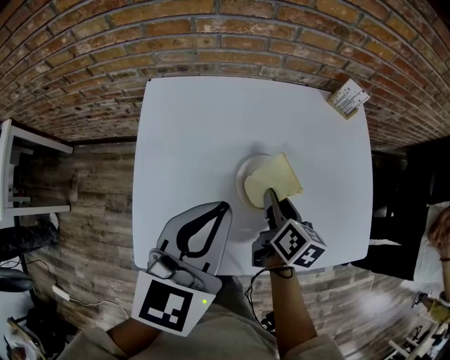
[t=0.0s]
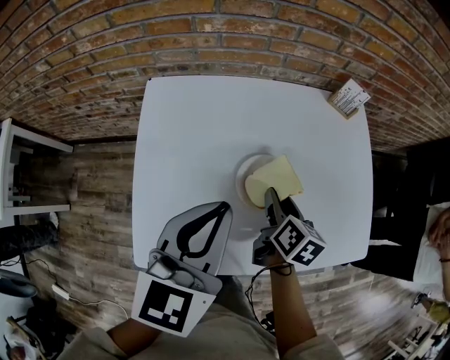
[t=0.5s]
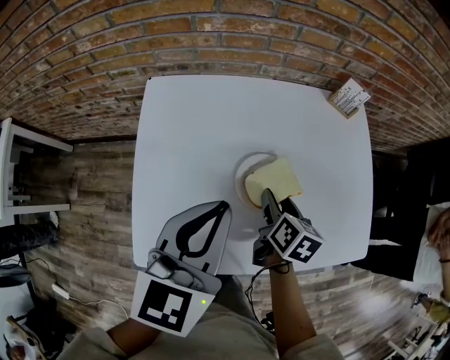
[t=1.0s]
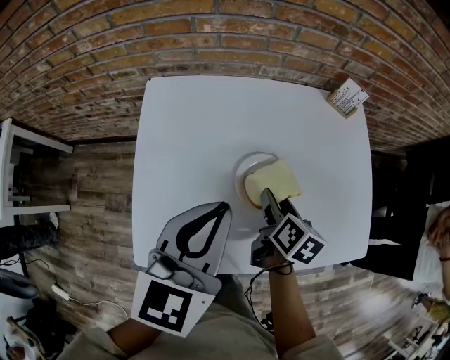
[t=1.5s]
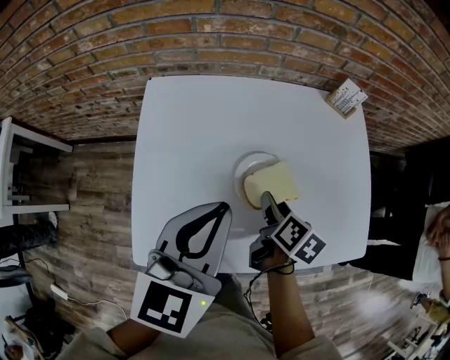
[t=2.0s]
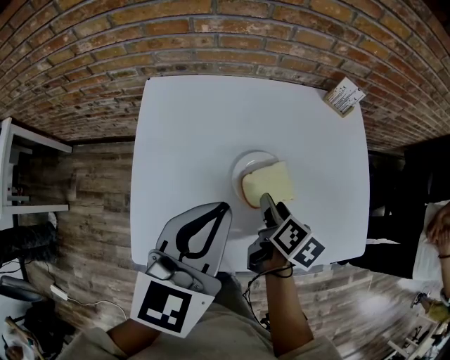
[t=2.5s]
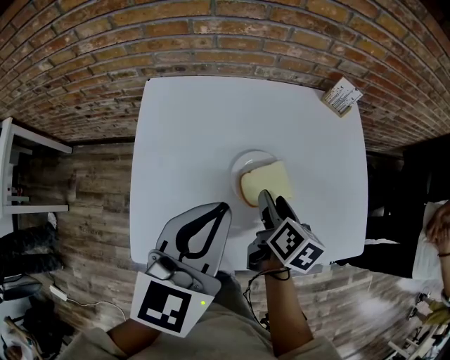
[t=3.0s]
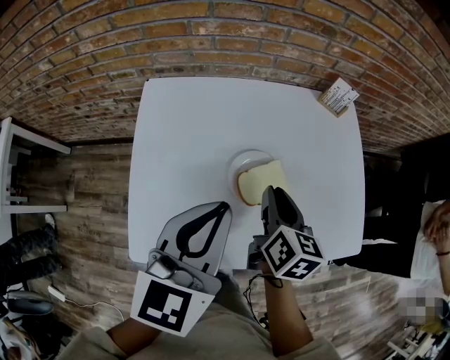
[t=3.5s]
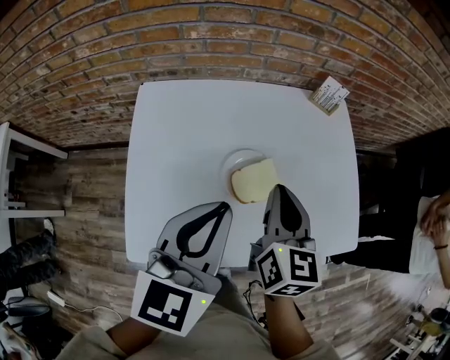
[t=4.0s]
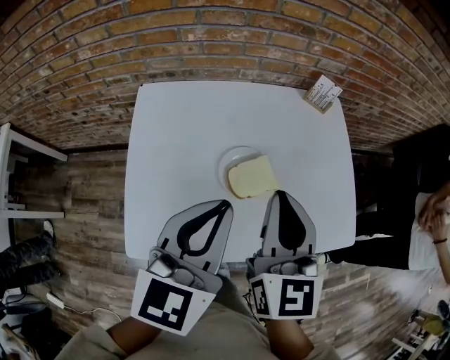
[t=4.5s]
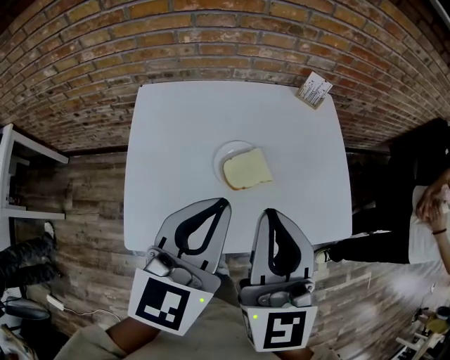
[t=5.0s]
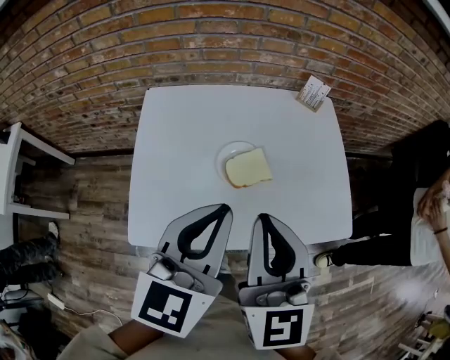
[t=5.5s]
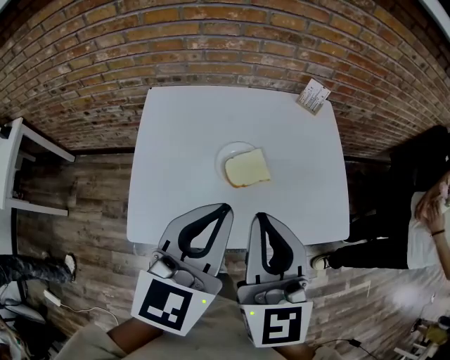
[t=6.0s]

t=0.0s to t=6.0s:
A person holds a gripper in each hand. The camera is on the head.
t=0.0s to t=2.0s: The right gripper opens.
t=2.0s to t=4.0s: The right gripper travels upward by approximately 15 cm, turns by roughly 40 degrees, and closes up.
t=4.0s to t=6.0s: The left gripper shifts approximately 10 cm backward. Meanwhile the right gripper moves backward and upward, some 20 cm, and turns by roughly 20 degrees.

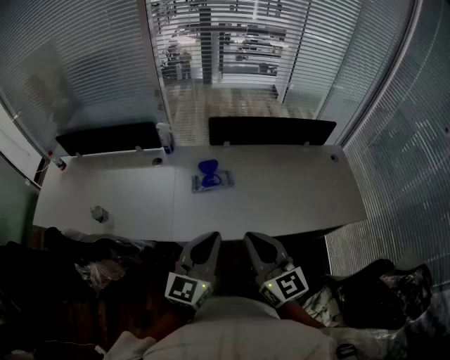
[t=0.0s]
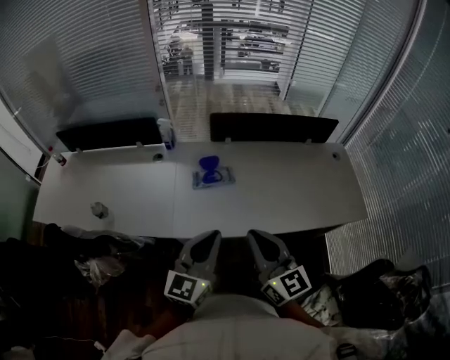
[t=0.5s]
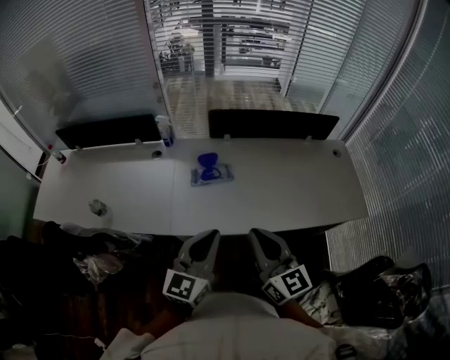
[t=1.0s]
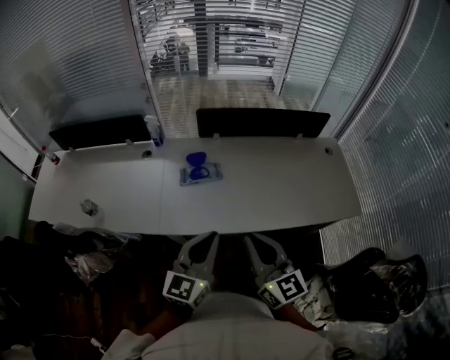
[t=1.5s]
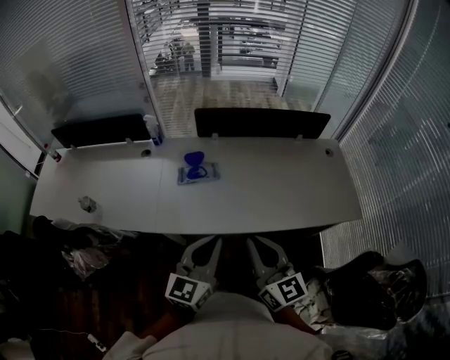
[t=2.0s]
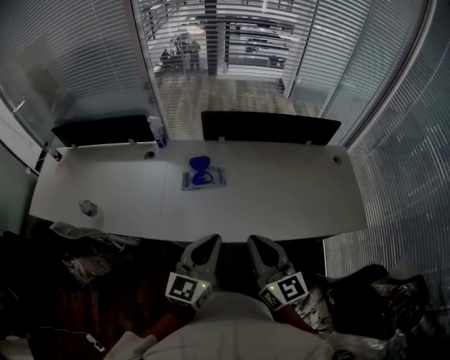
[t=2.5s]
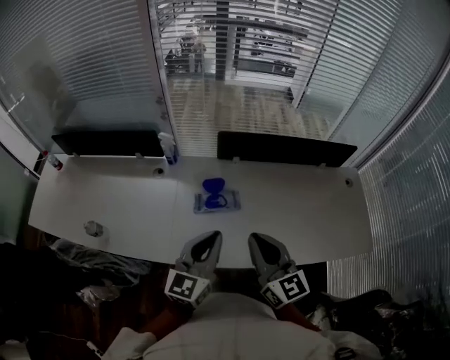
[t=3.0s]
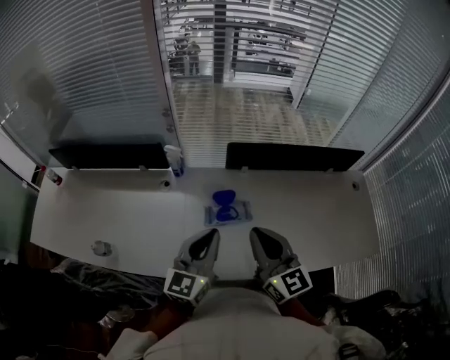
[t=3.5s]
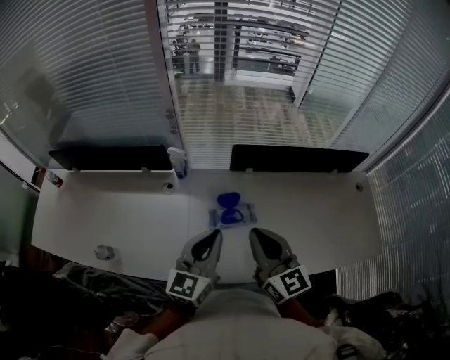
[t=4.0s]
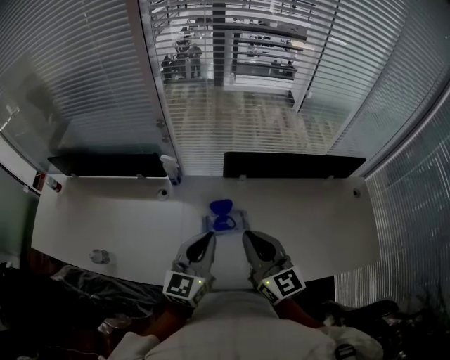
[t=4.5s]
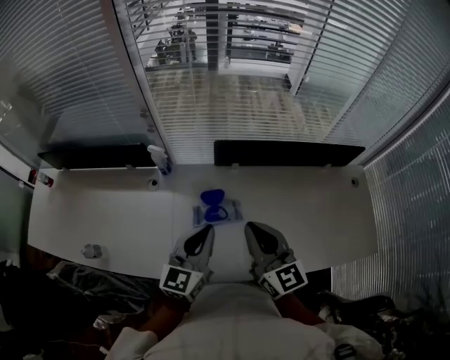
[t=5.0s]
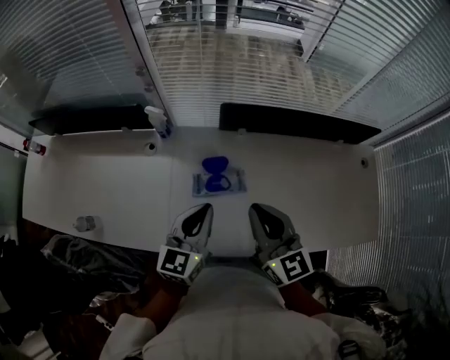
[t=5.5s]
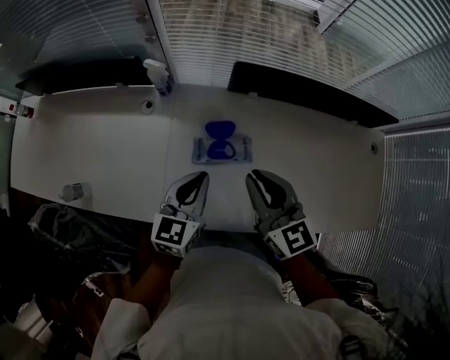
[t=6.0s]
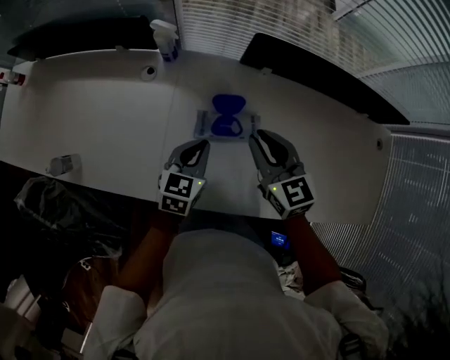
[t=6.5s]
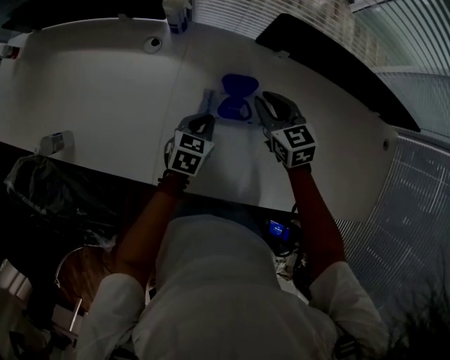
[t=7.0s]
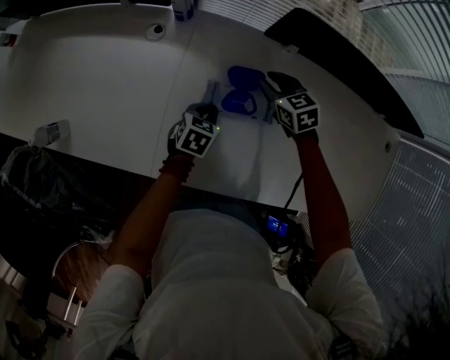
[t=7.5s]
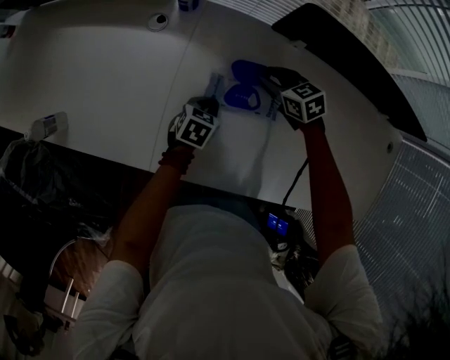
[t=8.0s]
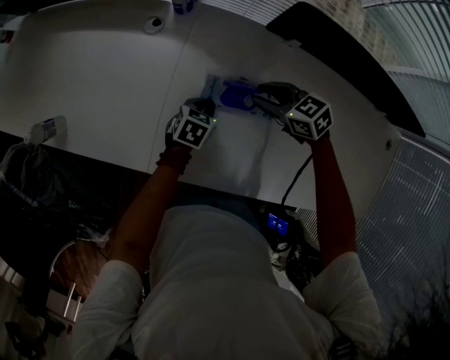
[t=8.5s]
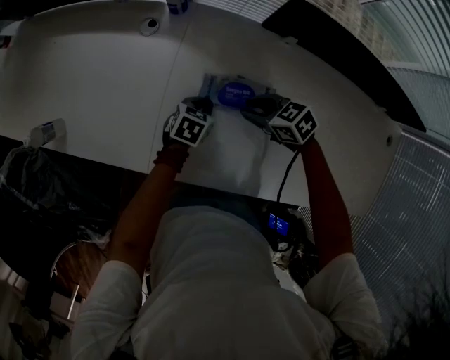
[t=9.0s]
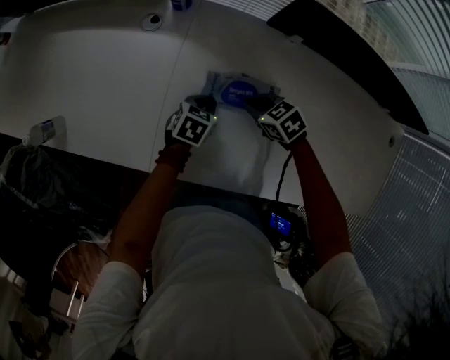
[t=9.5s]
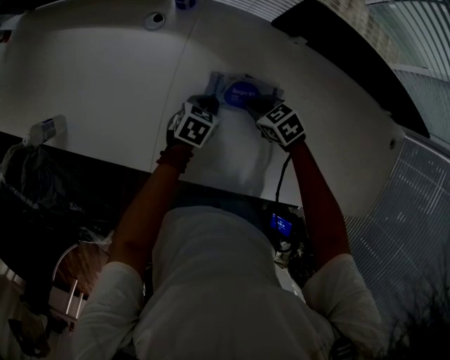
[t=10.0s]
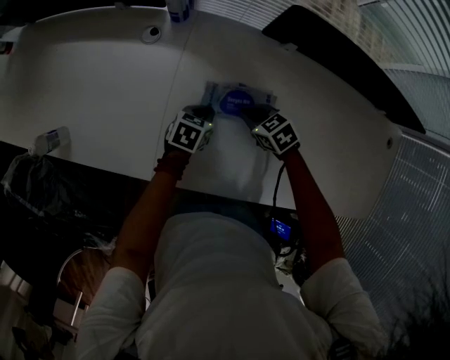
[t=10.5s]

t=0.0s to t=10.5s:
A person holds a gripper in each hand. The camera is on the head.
t=0.0s to t=2.0s: The two grippers go approximately 10 cm to the right.
t=2.0s to t=4.0s: Both grippers travel together forward and to the left, approximately 30 cm.
t=4.0s to t=6.5s: The right gripper goes approximately 20 cm downward and forward, and changes its angle by some 30 degrees. The left gripper travels downward by roughly 25 cm, and rotates about 30 degrees.
t=6.5s to t=8.5s: The two grippers go some 15 cm downward. The left gripper changes its angle by about 20 degrees. The right gripper swivels some 40 degrees.
t=8.5s to t=10.5s: The right gripper is displaced downward by about 10 cm, and closes up.

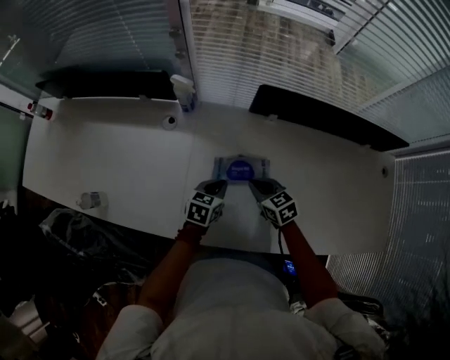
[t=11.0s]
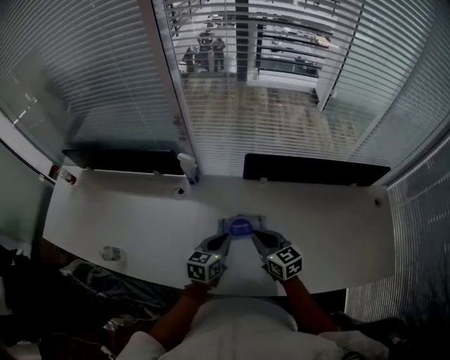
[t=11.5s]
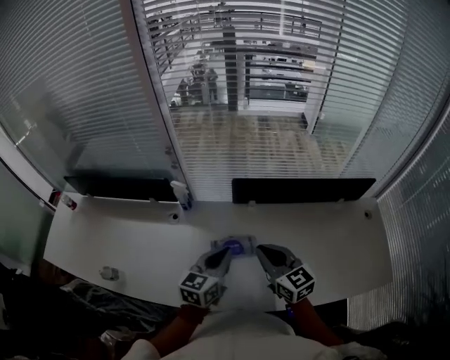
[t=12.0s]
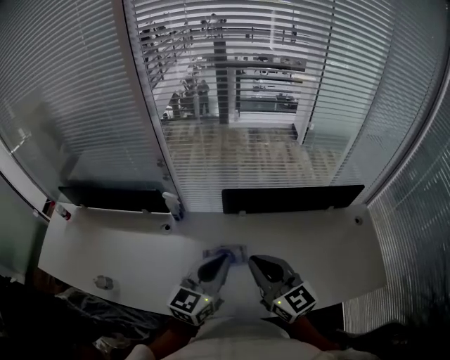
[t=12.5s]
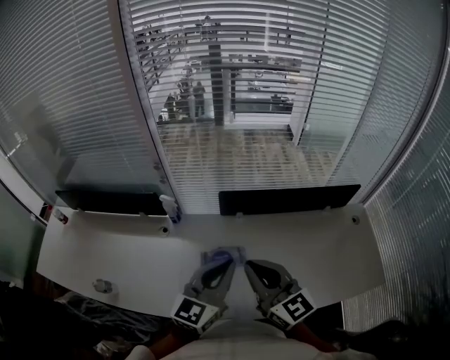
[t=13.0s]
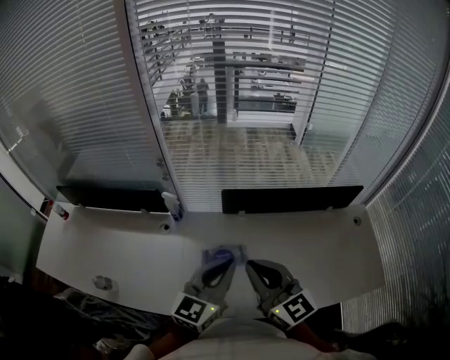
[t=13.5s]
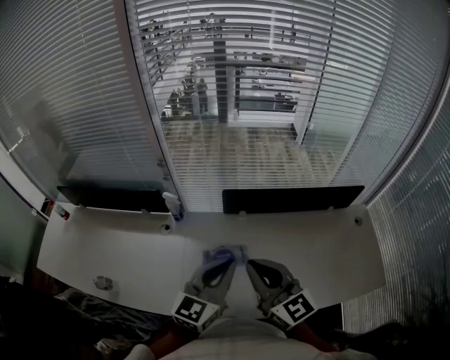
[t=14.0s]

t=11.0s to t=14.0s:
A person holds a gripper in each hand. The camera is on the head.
t=11.0s to t=12.5s: Both grippers move upward, roughly 35 cm. The right gripper points its fingers some 40 degrees further upward; the left gripper points its fingers about 40 degrees further upward.
t=12.5s to t=14.0s: The grippers make only small movements.

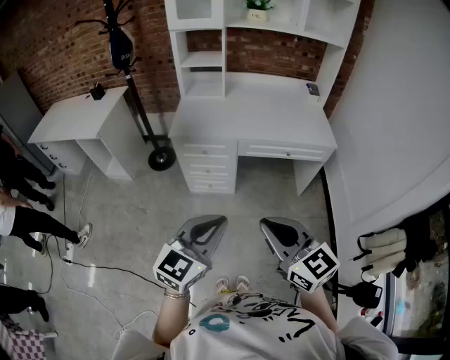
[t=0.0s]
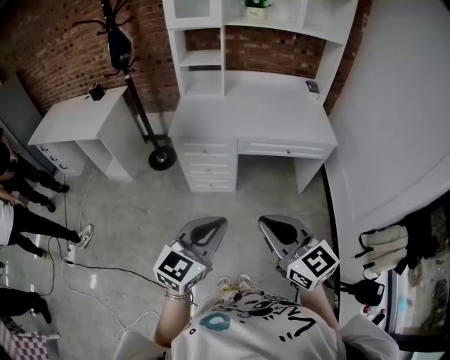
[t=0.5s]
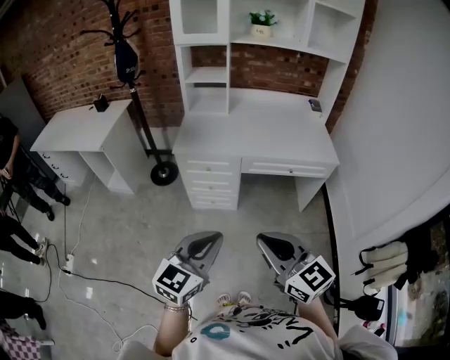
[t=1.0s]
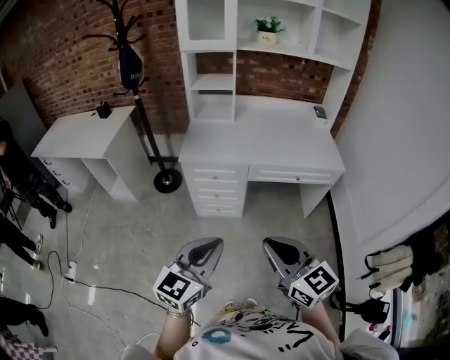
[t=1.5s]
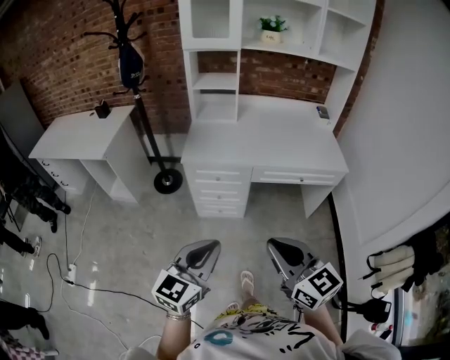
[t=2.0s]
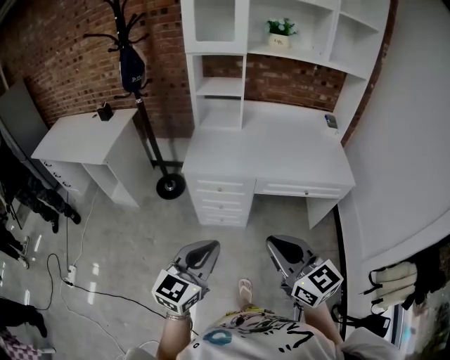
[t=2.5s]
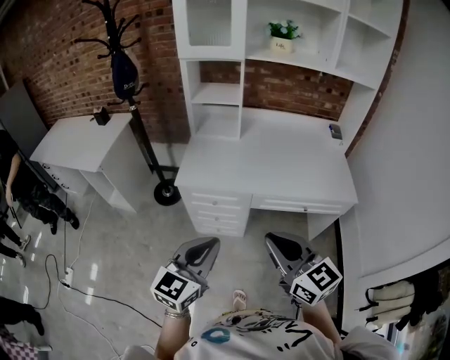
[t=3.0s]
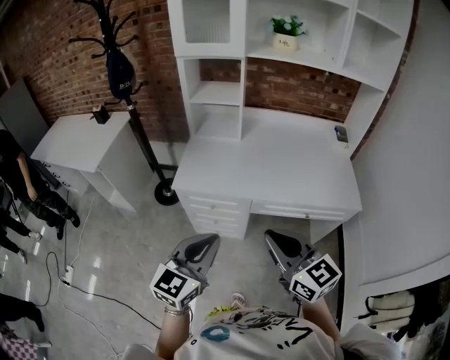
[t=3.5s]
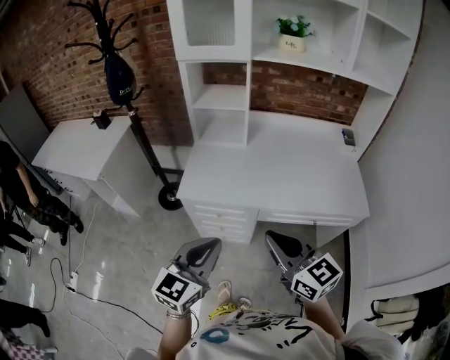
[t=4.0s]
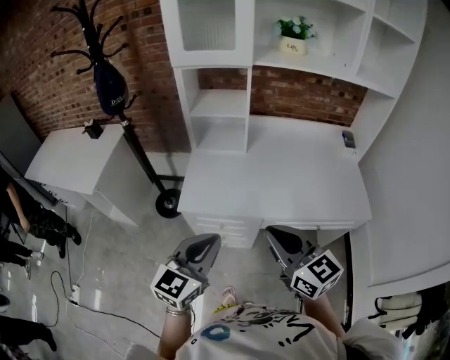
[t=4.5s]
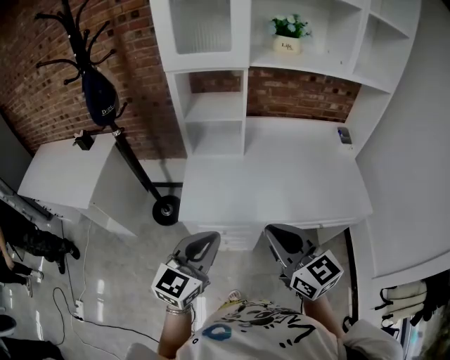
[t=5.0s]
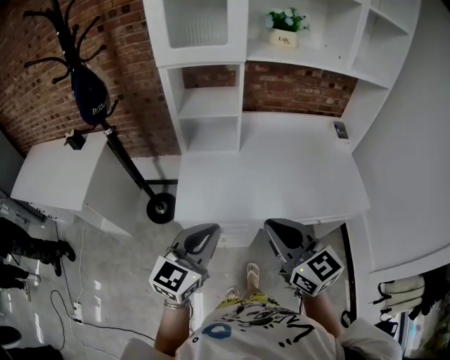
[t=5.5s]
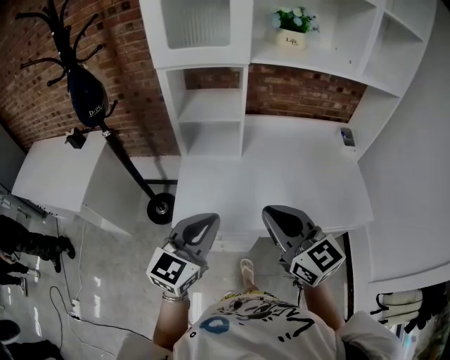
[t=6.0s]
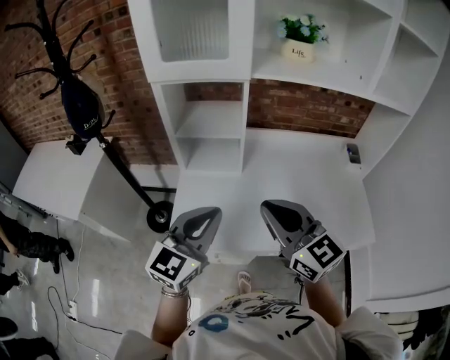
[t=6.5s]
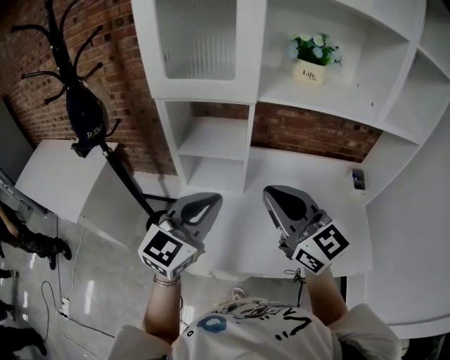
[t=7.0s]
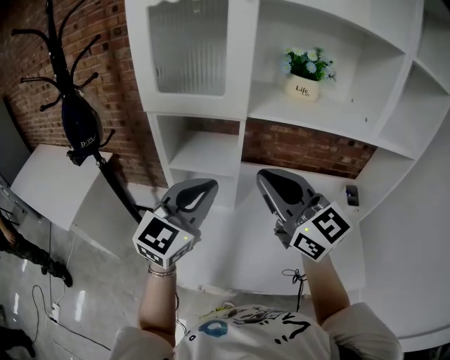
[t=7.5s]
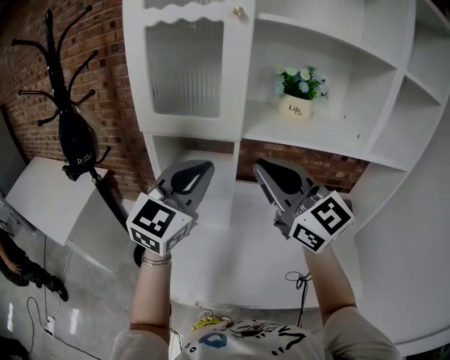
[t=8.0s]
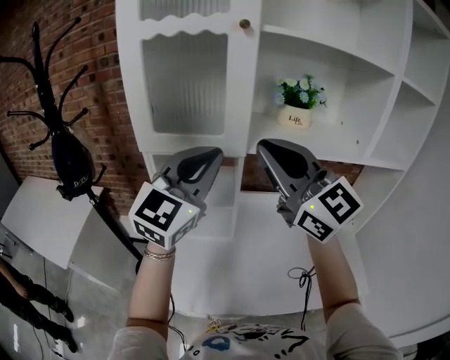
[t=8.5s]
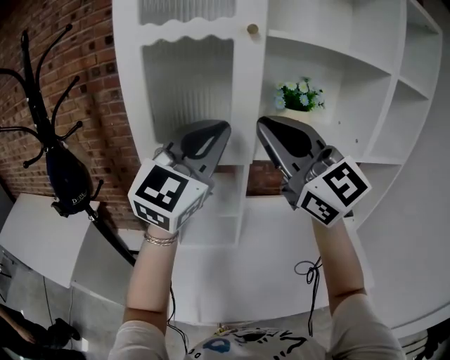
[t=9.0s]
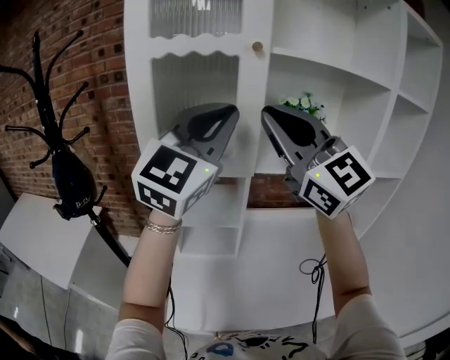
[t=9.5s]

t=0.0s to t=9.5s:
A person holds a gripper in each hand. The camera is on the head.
t=0.0s to t=2.0s: Both grippers move to the left and forward, about 10 cm.
t=2.0s to t=4.0s: The two grippers go roughly 30 cm forward.
t=4.0s to t=5.5s: The grippers both shift forward and to the left by about 15 cm.
t=5.5s to t=7.5s: The two grippers go roughly 30 cm forward and upward. The right gripper swivels about 20 degrees.
t=7.5s to t=9.5s: Both grippers move upward and forward, approximately 25 cm. The left gripper swivels roughly 20 degrees; the right gripper rotates some 30 degrees.
